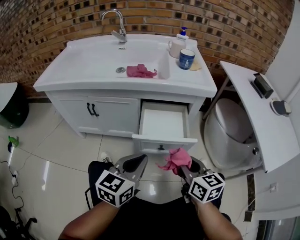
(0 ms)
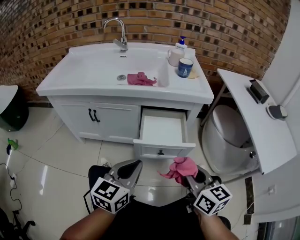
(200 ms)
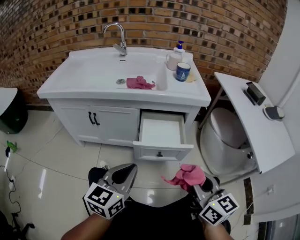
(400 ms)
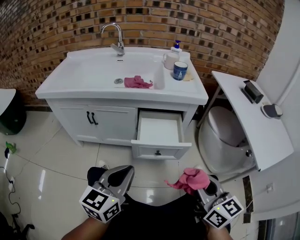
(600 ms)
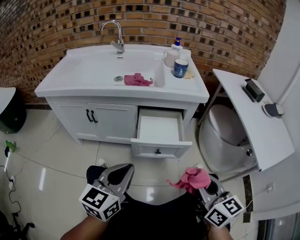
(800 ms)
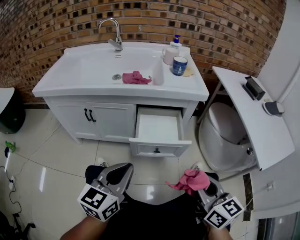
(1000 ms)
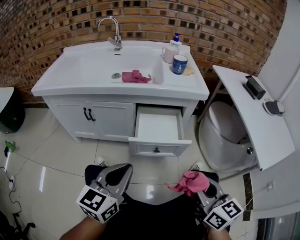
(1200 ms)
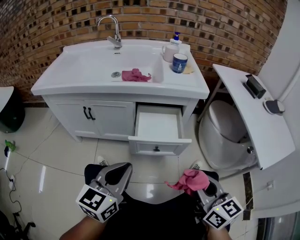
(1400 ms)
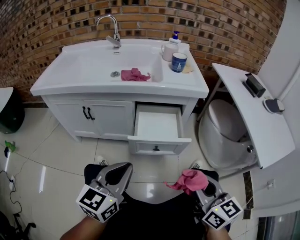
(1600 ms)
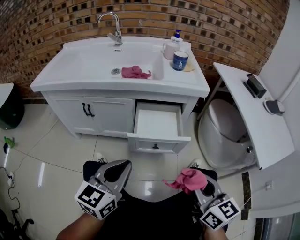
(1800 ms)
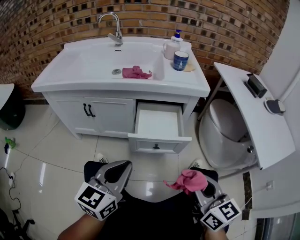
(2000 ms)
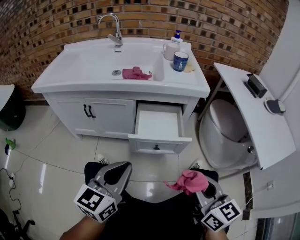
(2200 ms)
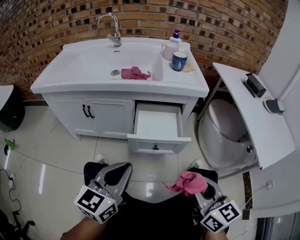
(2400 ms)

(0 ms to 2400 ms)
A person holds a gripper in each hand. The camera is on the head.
0 ms - 1200 ms: The left gripper is displaced upward by roughly 5 cm. Meanwhile the right gripper is displaced backward and upward by about 15 cm.
1200 ms - 2400 ms: Both grippers stay put.

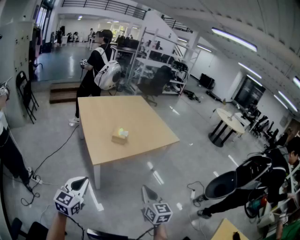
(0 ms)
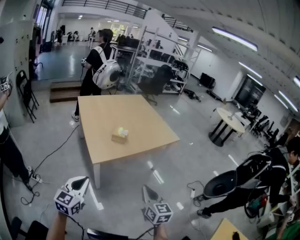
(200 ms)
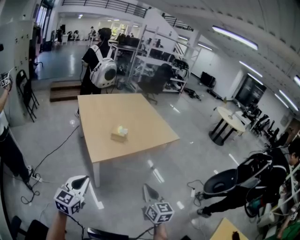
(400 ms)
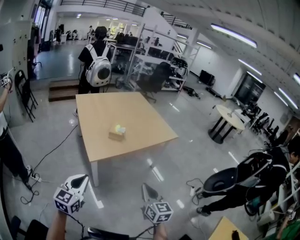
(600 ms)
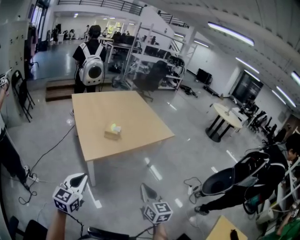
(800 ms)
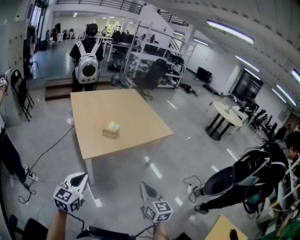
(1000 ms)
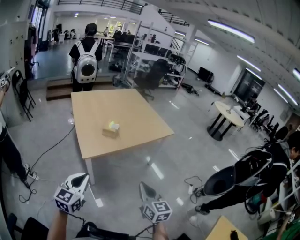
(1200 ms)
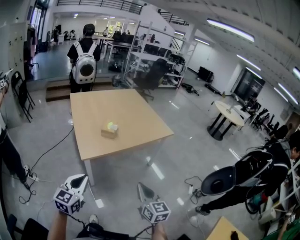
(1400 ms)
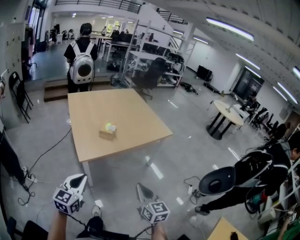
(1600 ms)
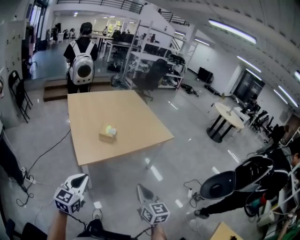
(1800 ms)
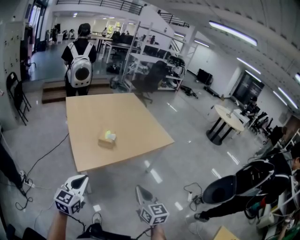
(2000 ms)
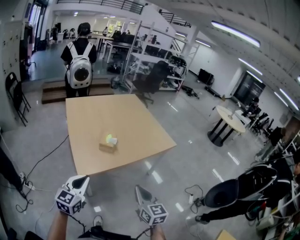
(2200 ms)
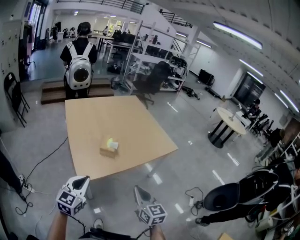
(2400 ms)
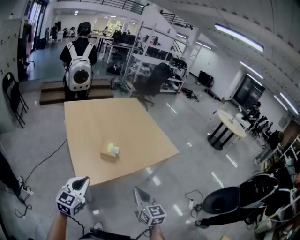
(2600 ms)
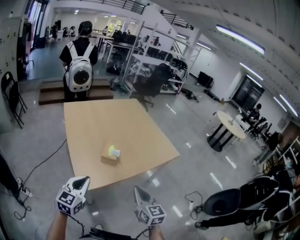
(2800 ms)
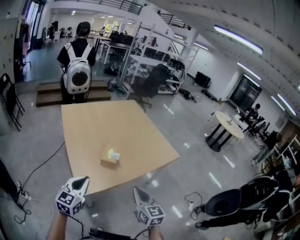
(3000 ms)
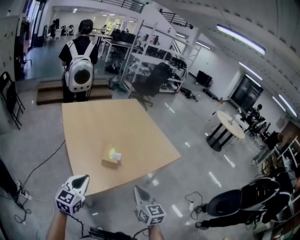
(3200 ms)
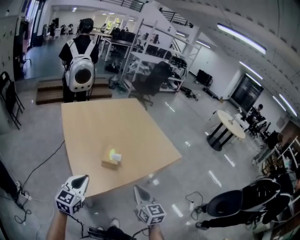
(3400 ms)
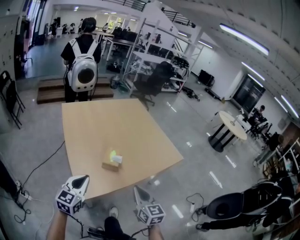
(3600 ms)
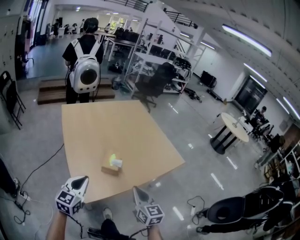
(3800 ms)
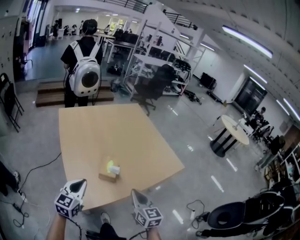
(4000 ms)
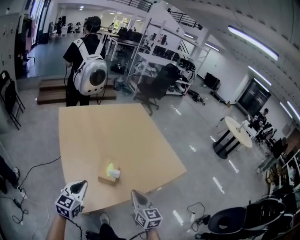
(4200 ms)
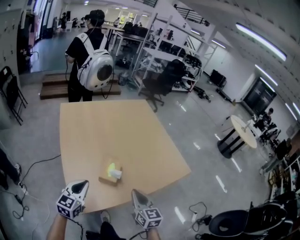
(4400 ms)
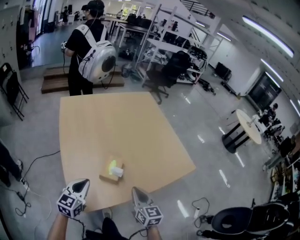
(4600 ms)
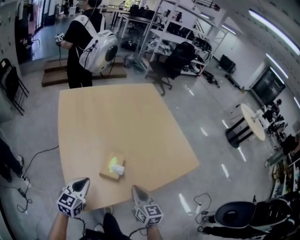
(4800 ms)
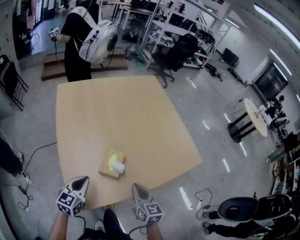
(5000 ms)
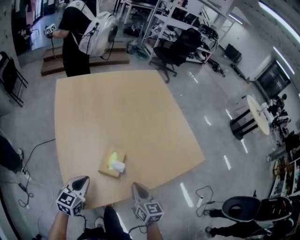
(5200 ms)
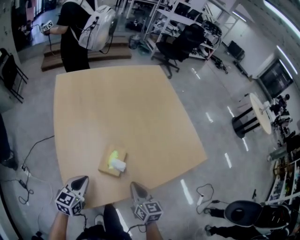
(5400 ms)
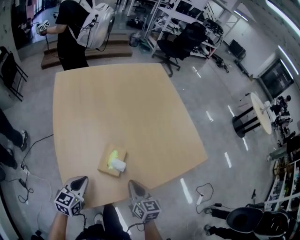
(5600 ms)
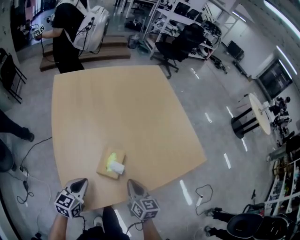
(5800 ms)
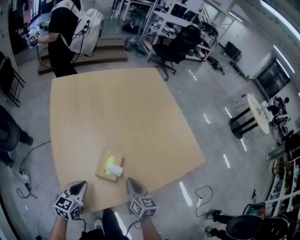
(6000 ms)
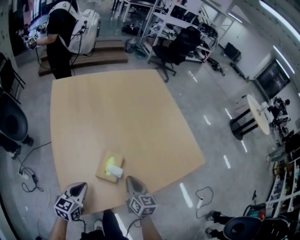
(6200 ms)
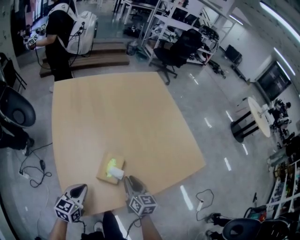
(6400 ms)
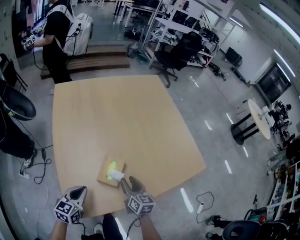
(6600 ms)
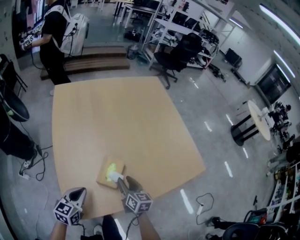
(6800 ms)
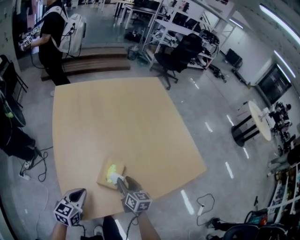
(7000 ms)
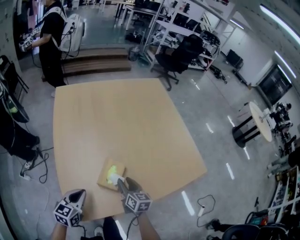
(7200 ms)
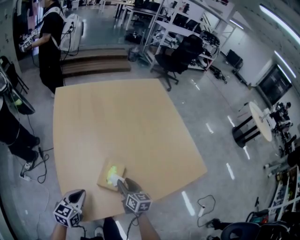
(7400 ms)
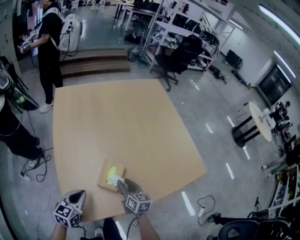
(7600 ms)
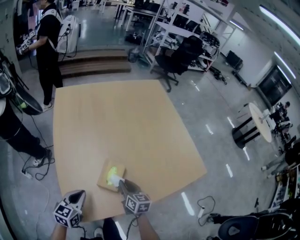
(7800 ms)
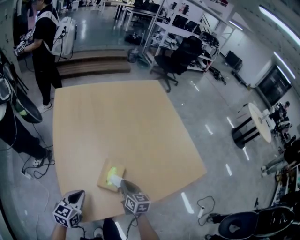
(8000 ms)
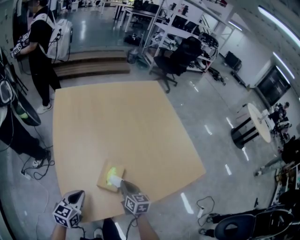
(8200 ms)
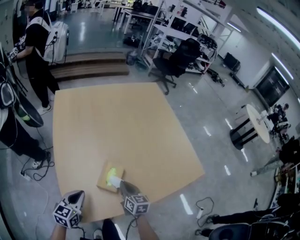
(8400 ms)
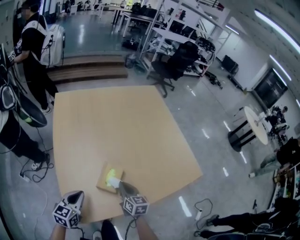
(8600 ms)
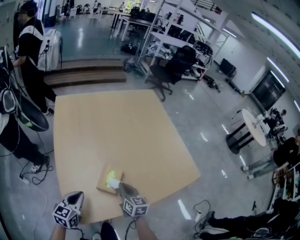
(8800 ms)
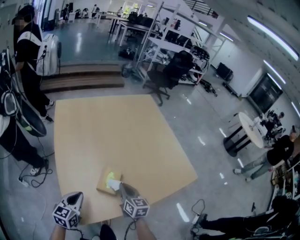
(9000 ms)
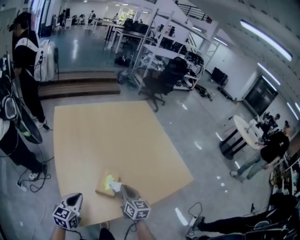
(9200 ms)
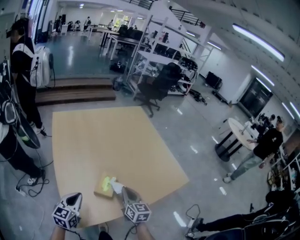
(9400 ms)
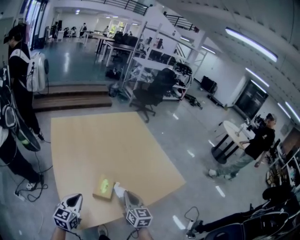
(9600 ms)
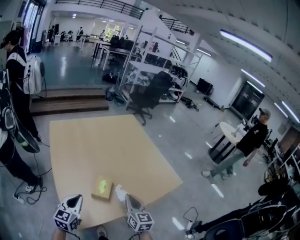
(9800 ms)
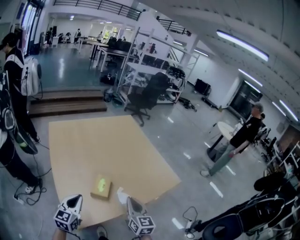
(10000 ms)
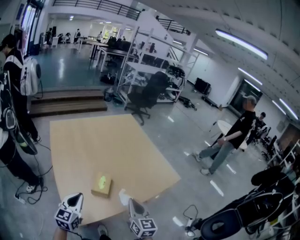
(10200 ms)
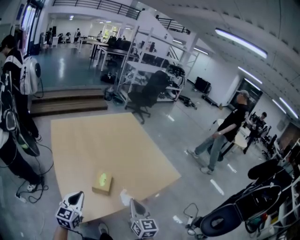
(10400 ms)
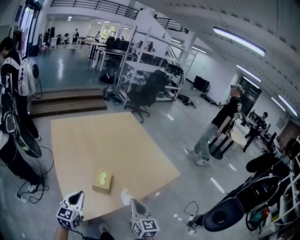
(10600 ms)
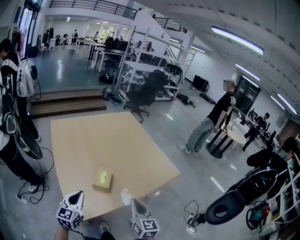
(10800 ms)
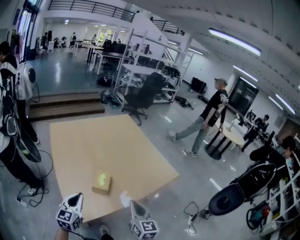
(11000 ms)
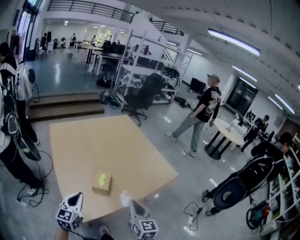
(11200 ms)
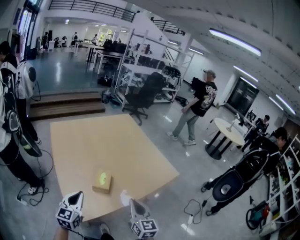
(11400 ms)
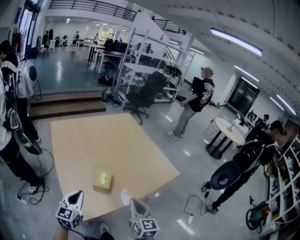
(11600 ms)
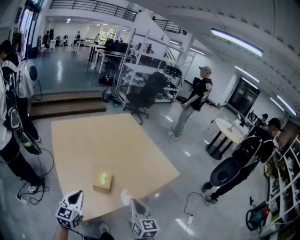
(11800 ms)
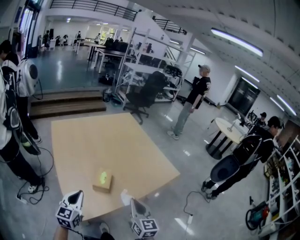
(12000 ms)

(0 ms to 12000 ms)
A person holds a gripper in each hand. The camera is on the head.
0 ms - 1600 ms: The two grippers go roughly 10 cm to the right.
1600 ms - 3000 ms: The right gripper travels forward and to the left by some 25 cm; the left gripper moves forward, about 25 cm.
3000 ms - 4400 ms: The two grippers go roughly 20 cm forward.
4400 ms - 6000 ms: The two grippers go roughly 15 cm downward and forward.
6000 ms - 7600 ms: The right gripper heads downward, covering roughly 5 cm, and opens up.
7600 ms - 9000 ms: The right gripper is displaced upward by some 5 cm, and closes up.
9000 ms - 10400 ms: The left gripper is displaced upward and backward by some 15 cm; the right gripper goes some 25 cm backward, upward and to the right, and turns by roughly 20 degrees.
10400 ms - 12000 ms: There are only small adjustments of the grippers.

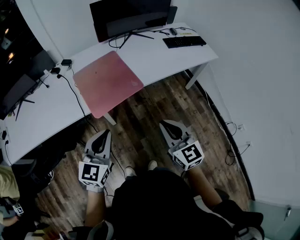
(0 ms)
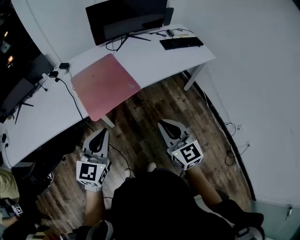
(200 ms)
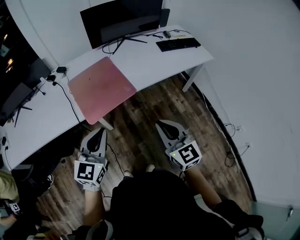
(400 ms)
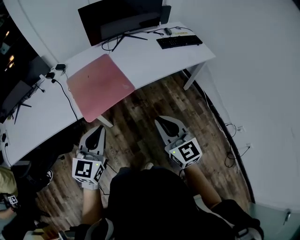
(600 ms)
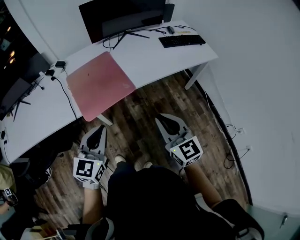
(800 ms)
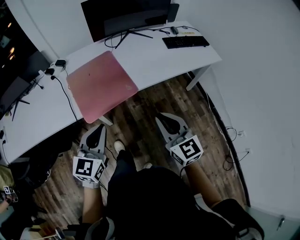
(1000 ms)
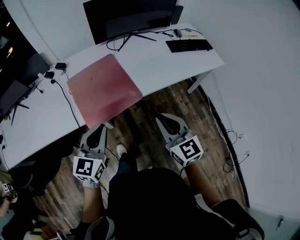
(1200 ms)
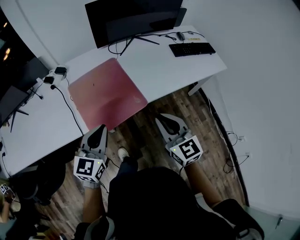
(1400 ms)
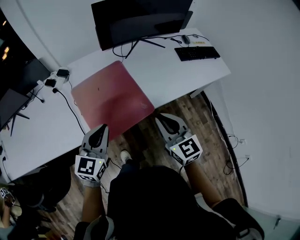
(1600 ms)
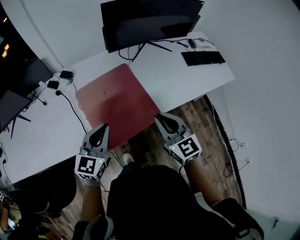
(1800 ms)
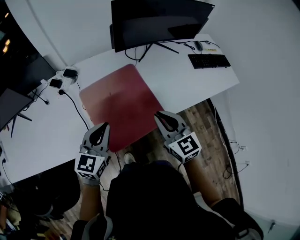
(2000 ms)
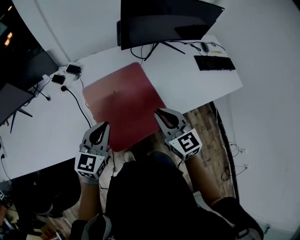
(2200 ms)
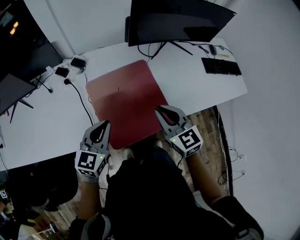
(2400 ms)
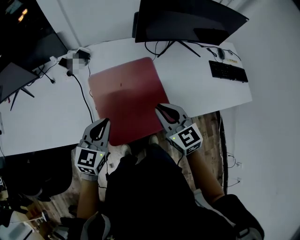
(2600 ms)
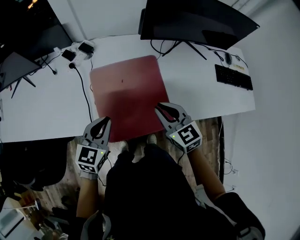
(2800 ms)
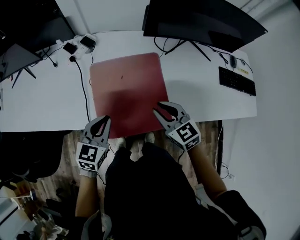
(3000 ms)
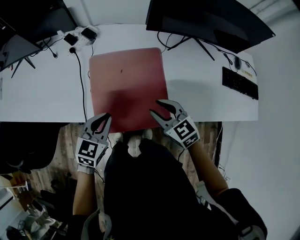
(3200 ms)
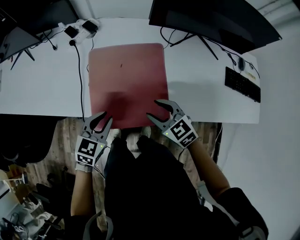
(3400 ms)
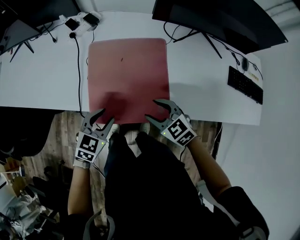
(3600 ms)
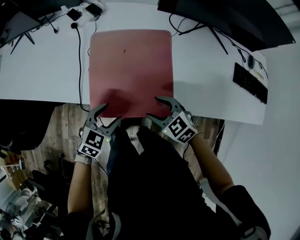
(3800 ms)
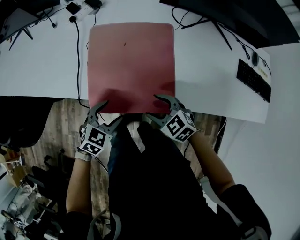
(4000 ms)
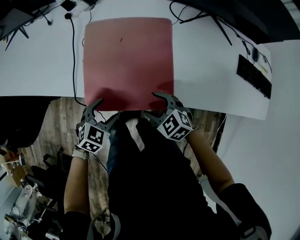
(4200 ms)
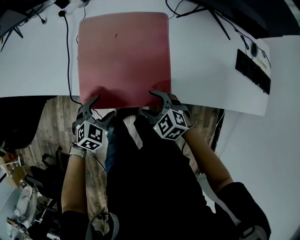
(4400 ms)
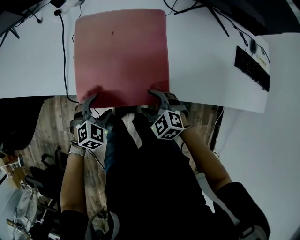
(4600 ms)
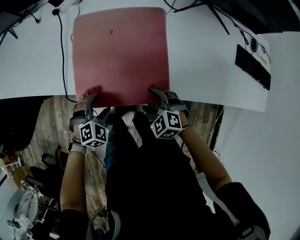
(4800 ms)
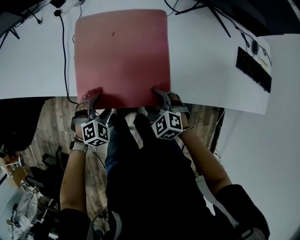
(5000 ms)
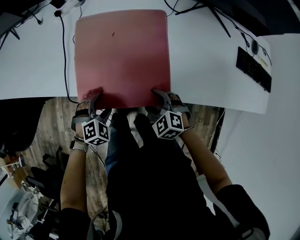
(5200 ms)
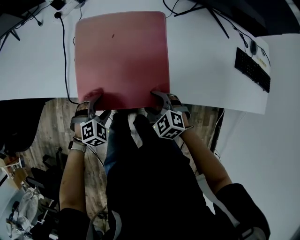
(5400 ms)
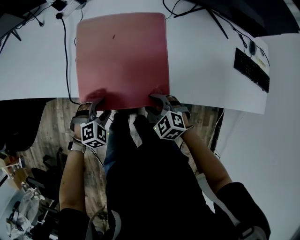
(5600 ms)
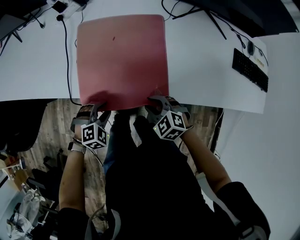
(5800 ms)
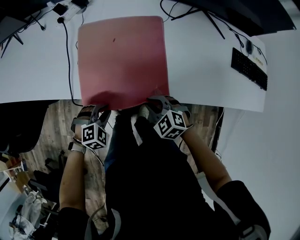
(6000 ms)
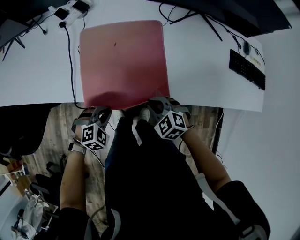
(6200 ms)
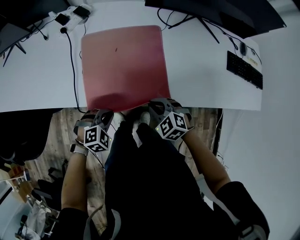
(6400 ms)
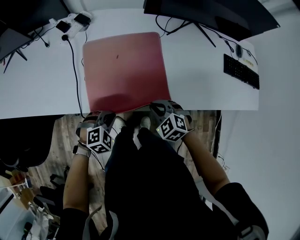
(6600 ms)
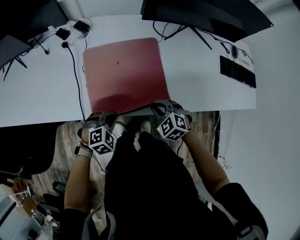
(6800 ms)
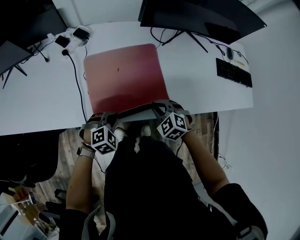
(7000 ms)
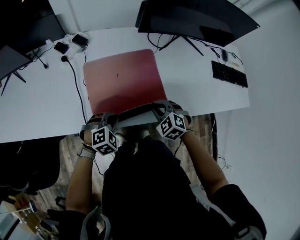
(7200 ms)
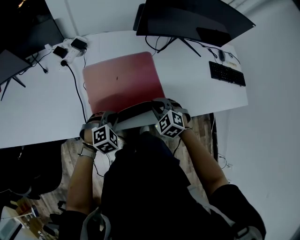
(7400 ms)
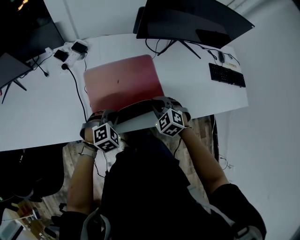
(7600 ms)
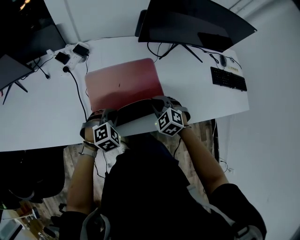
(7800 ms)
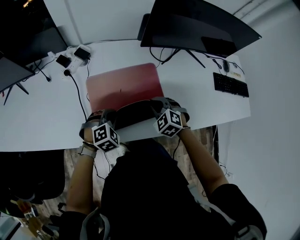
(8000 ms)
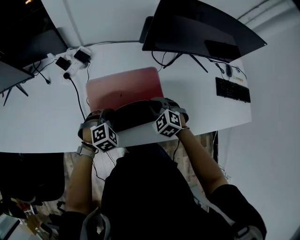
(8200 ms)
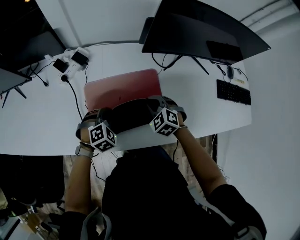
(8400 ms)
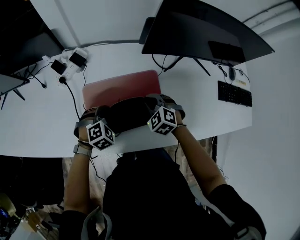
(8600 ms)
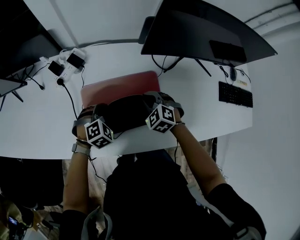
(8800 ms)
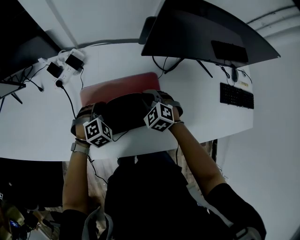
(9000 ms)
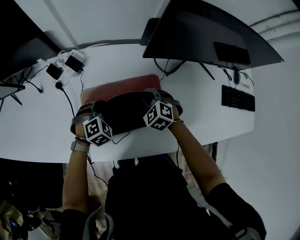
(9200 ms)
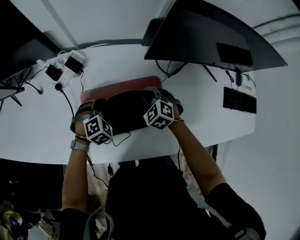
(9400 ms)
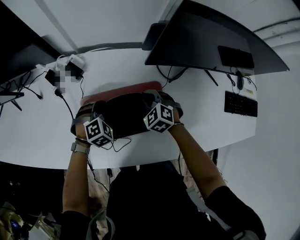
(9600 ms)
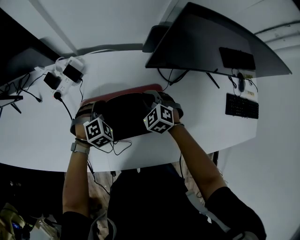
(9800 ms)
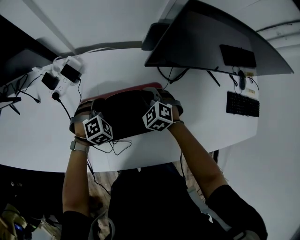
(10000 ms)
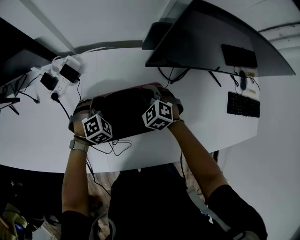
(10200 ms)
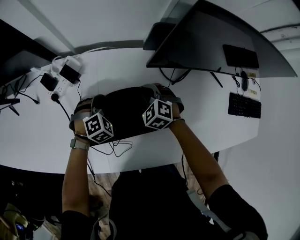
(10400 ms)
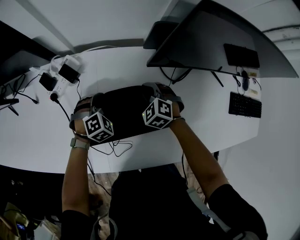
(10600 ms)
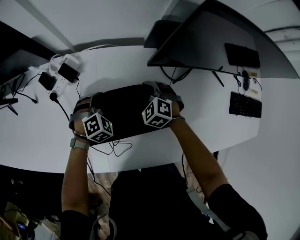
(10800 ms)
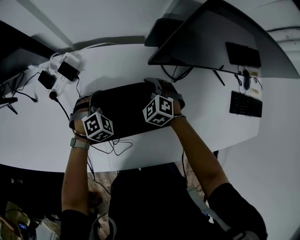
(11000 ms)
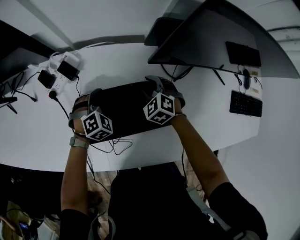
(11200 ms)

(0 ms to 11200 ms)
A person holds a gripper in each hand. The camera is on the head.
0 ms - 1600 ms: Both grippers move forward, approximately 25 cm.
1600 ms - 3200 ms: The left gripper is displaced downward by about 10 cm, and swivels approximately 20 degrees, while the right gripper moves approximately 20 cm, changes its angle by approximately 40 degrees, and opens.
3200 ms - 4800 ms: The right gripper travels downward and backward by roughly 20 cm, changes its angle by some 40 degrees, and opens up, while the left gripper heads downward, covering about 20 cm, swivels some 40 degrees, and opens up.
4800 ms - 6400 ms: The right gripper shifts approximately 5 cm upward, and closes up. Meanwhile the left gripper closes its fingers.
6400 ms - 8000 ms: Both grippers move forward, approximately 15 cm.
8000 ms - 9600 ms: The grippers both shift forward by some 20 cm.
9600 ms - 11200 ms: The grippers both shift forward by roughly 5 cm.
